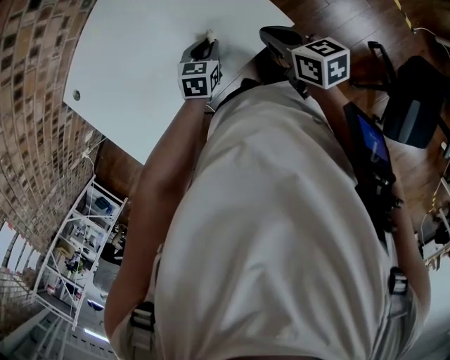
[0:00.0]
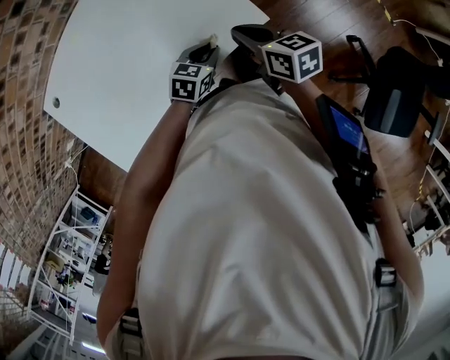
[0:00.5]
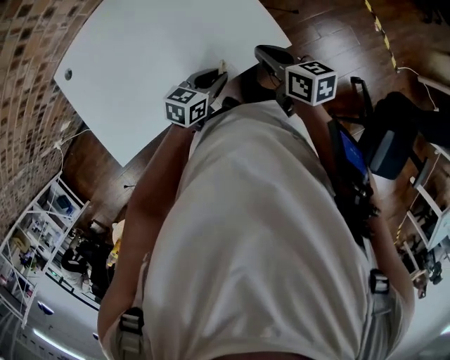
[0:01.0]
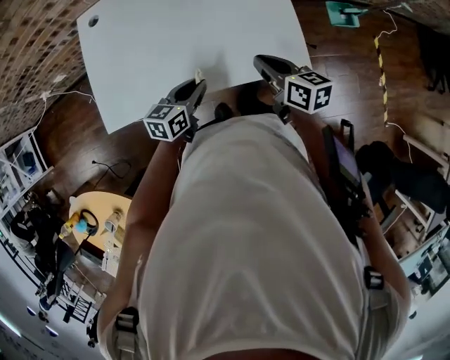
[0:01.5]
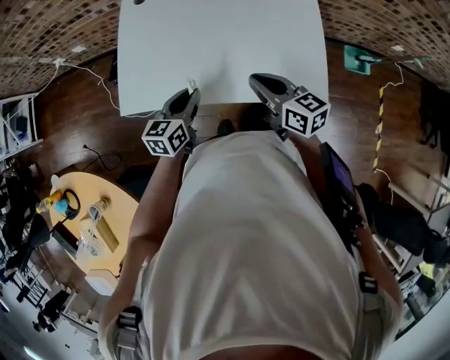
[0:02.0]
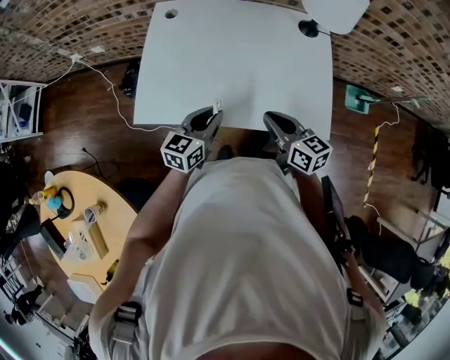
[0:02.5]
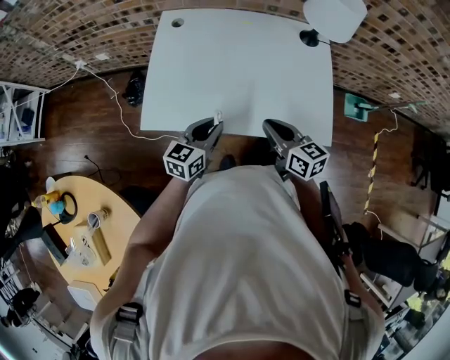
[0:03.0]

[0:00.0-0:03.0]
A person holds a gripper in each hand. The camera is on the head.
0:00.0 to 0:01.5: The right gripper changes place by about 10 cm, and swivels about 20 degrees; the left gripper ends up some 20 cm from where it was, and swivels some 40 degrees.
0:01.5 to 0:03.0: The right gripper moves to the left, roughly 15 cm, while the left gripper heads to the left and upward, covering approximately 15 cm.

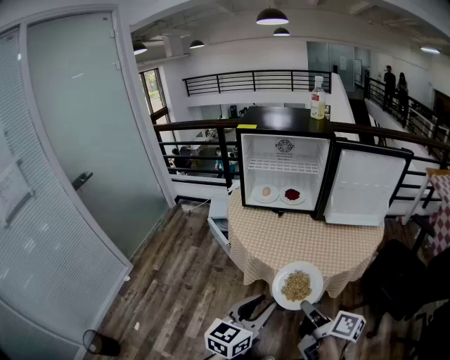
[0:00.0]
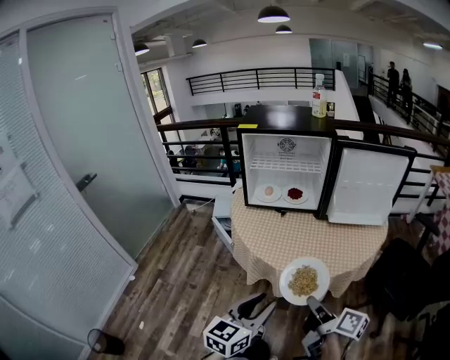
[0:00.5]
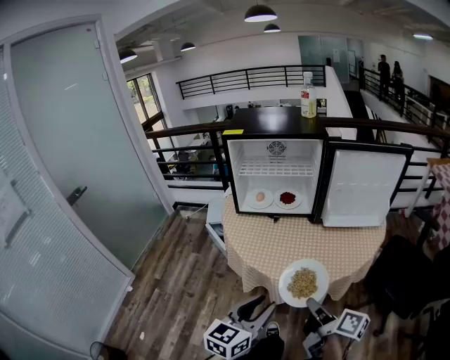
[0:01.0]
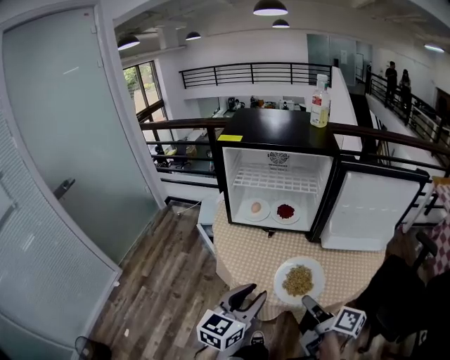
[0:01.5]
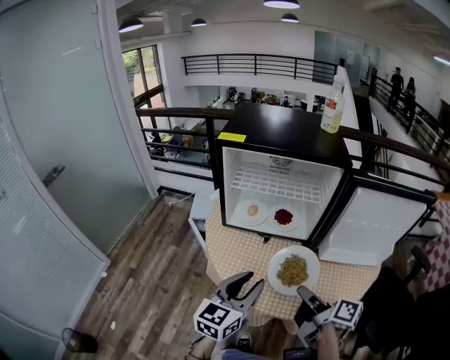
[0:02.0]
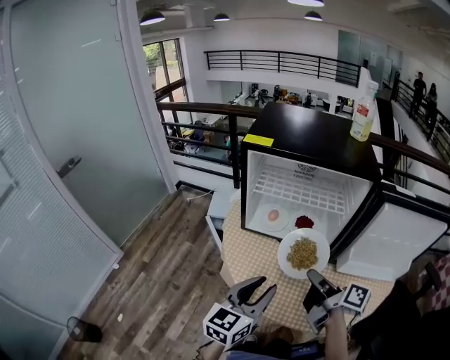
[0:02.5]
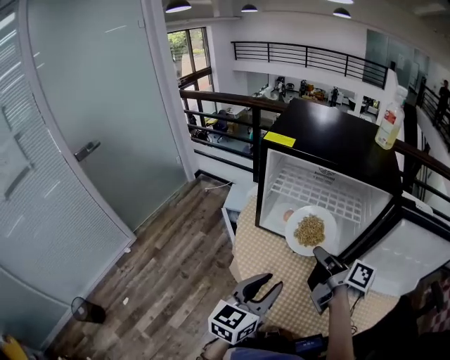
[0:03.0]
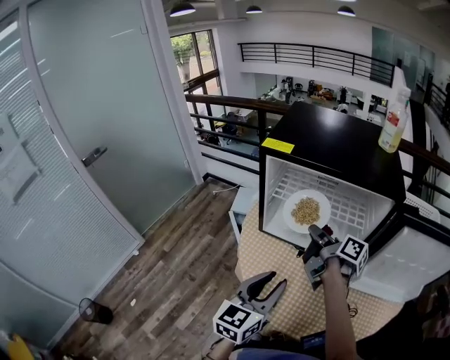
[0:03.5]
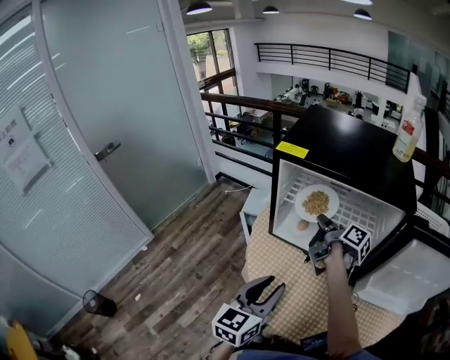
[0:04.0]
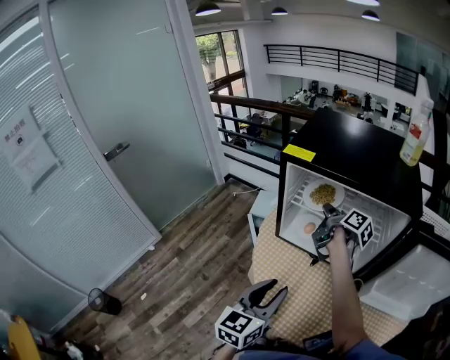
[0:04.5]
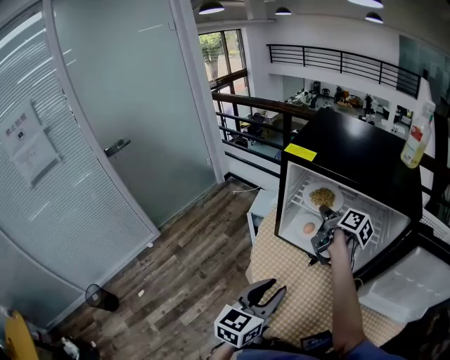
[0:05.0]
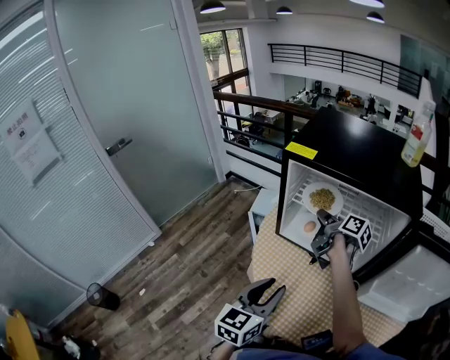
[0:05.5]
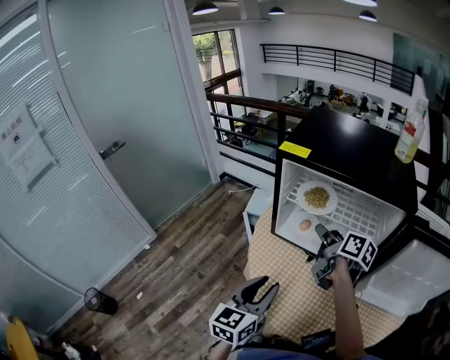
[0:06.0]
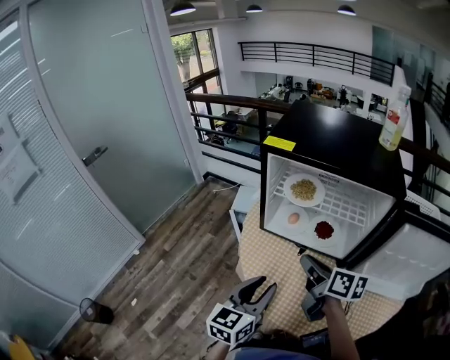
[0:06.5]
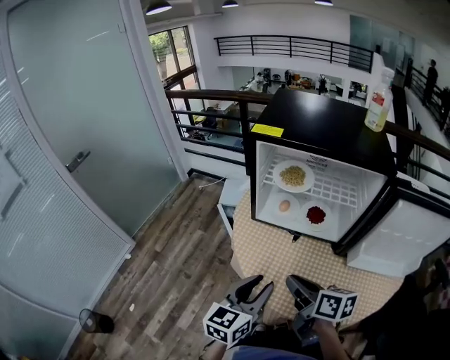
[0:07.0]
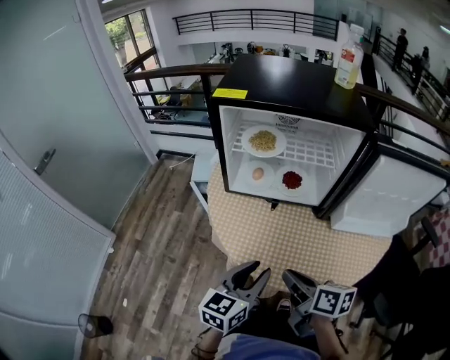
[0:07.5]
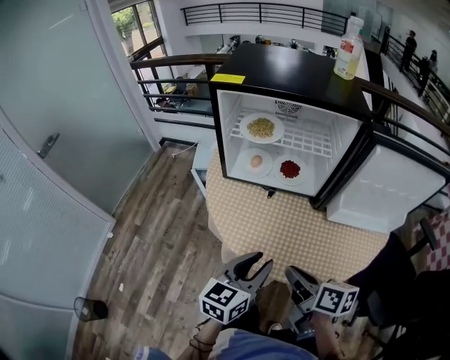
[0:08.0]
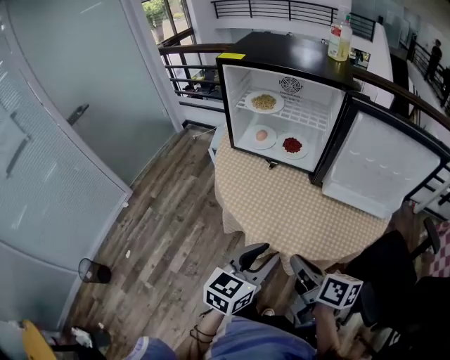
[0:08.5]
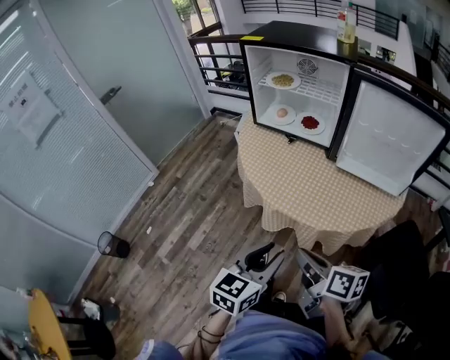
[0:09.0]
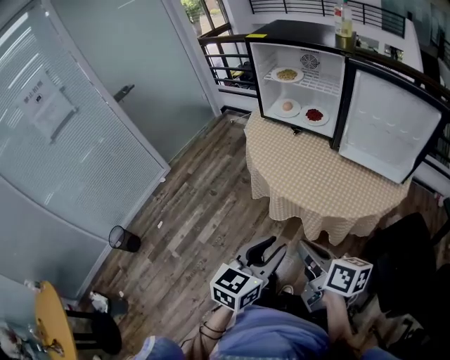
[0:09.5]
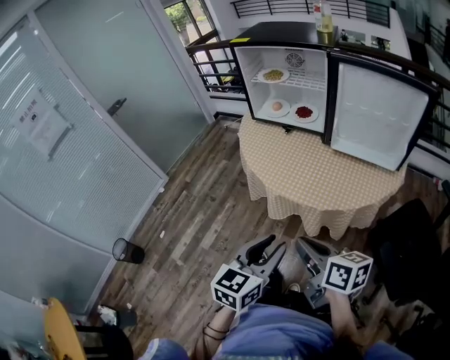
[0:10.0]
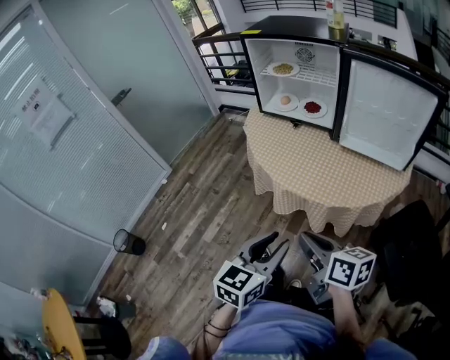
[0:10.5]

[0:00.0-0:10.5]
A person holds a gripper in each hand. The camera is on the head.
0:00.0 to 0:02.0: Both grippers move forward, about 25 cm.
0:02.0 to 0:04.0: The left gripper moves forward, roughly 5 cm. The right gripper goes about 35 cm forward.
0:04.0 to 0:06.5: The right gripper goes approximately 15 cm backward, and changes its angle by some 30 degrees.
0:06.5 to 0:08.5: The right gripper shifts approximately 30 cm backward. Meanwhile the left gripper shifts roughly 25 cm backward and to the right.
0:08.5 to 0:10.5: The grippers both shift backward by approximately 20 cm.

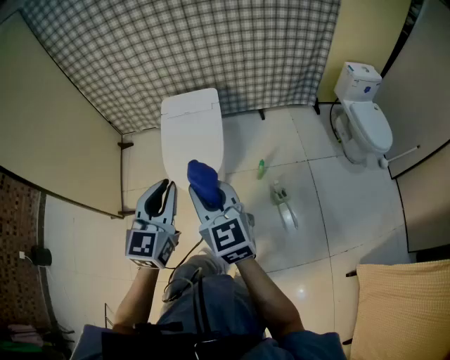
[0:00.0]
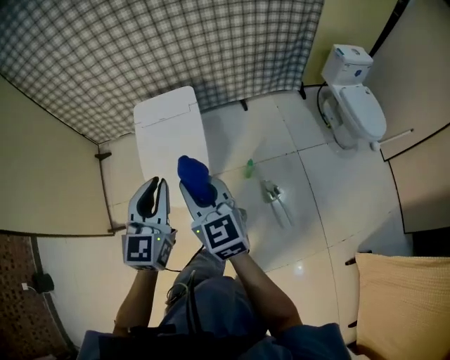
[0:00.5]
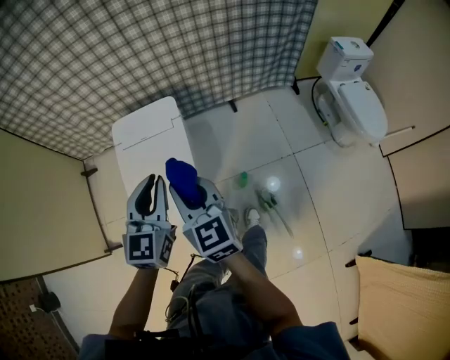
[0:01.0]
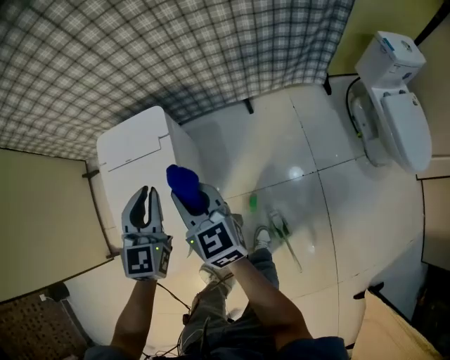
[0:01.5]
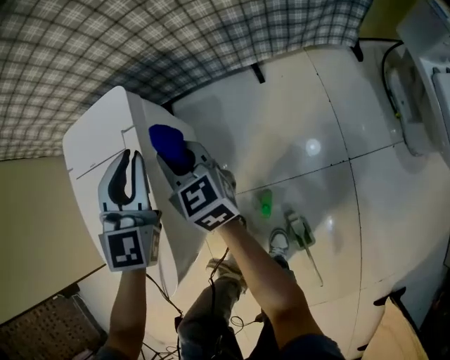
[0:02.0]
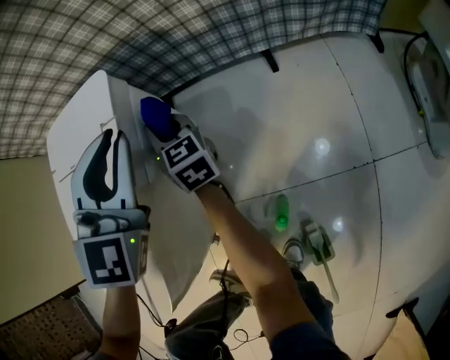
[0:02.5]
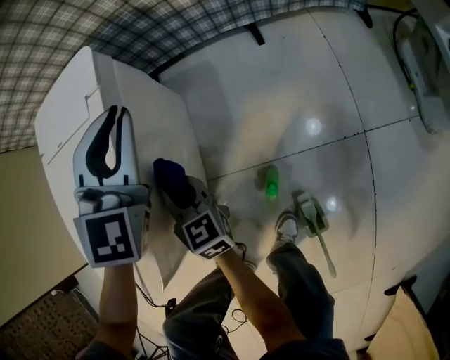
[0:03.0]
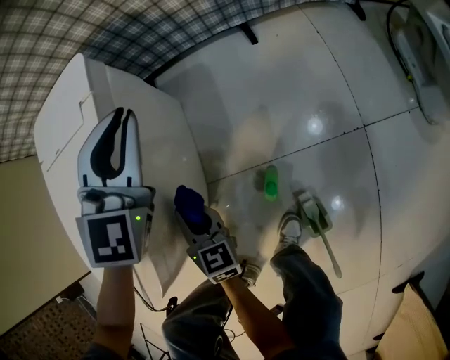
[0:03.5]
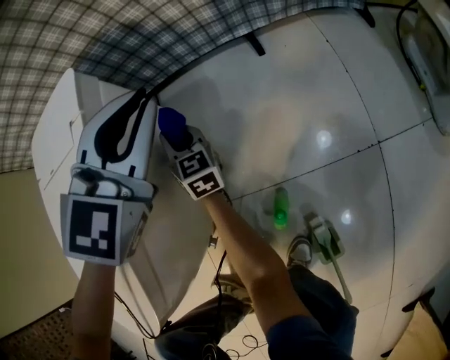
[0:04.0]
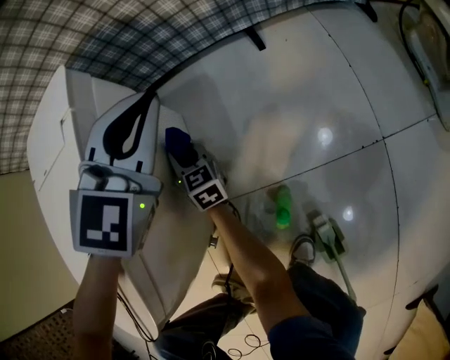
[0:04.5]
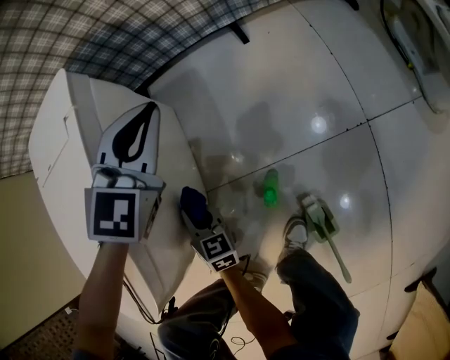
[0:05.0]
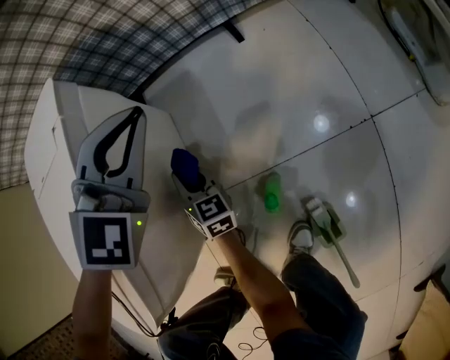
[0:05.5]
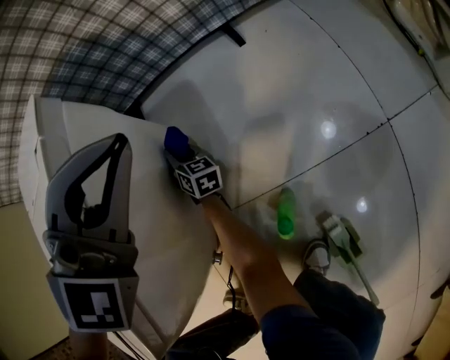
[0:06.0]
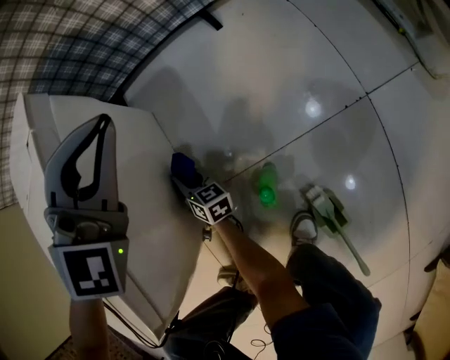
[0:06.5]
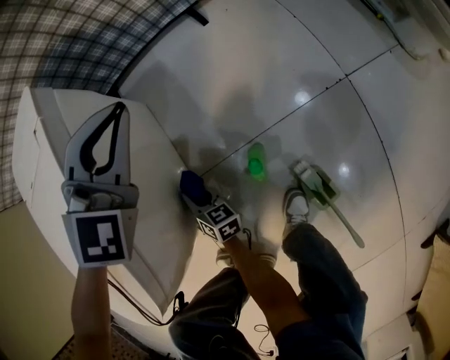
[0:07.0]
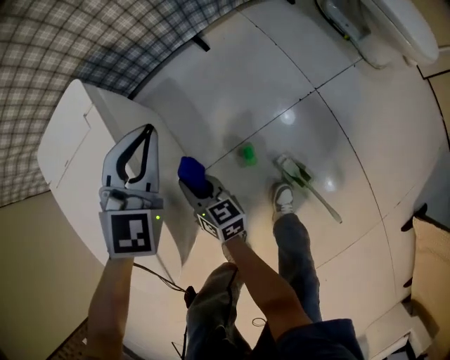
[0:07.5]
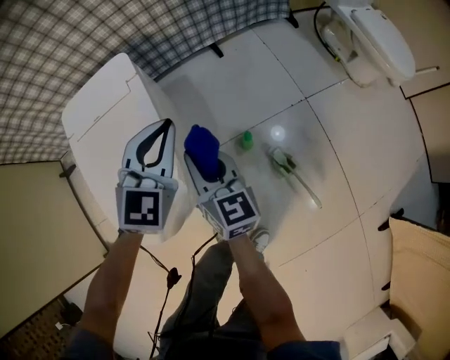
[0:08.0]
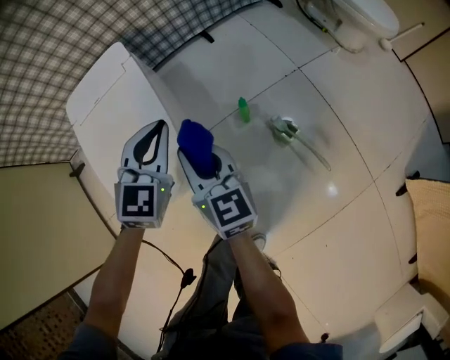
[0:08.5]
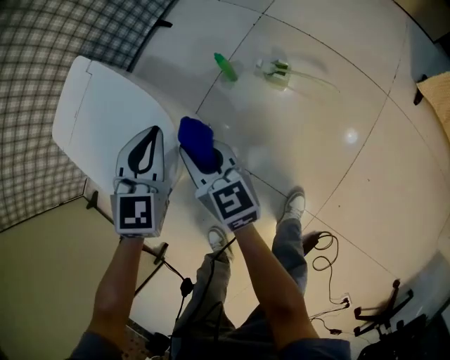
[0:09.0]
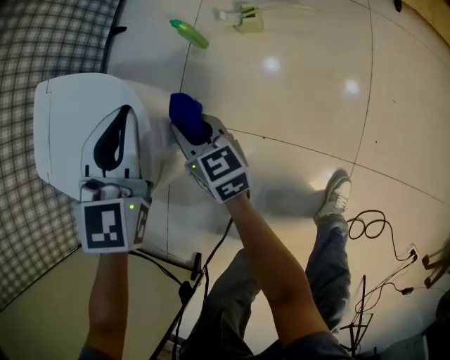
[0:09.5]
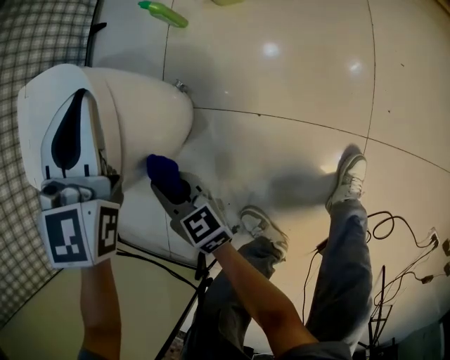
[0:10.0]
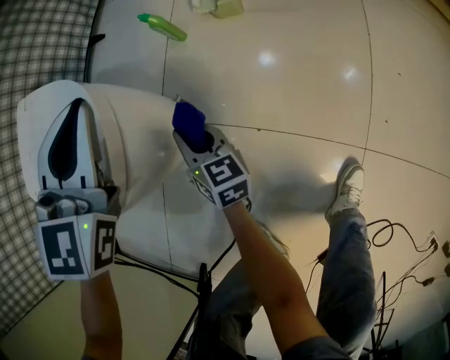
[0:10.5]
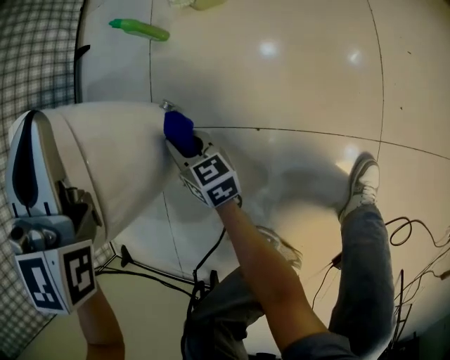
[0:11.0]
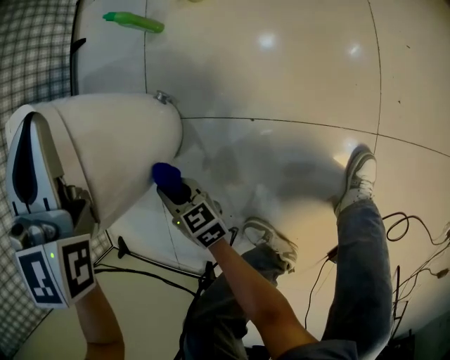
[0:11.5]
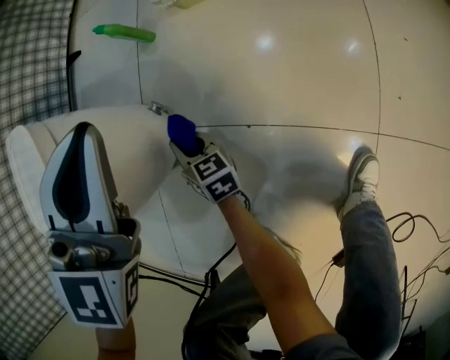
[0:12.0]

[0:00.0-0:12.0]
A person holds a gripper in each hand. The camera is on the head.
0:00.0 to 0:02.0: Both grippers are carried forward, roughly 60 cm. Both grippers travel together downward, about 40 cm. The left gripper changes its angle by about 20 degrees.
0:02.0 to 0:04.0: The right gripper goes forward and backward, roughly 30 cm each way, reversing 2 times. The left gripper shifts about 15 cm downward and to the right, and rotates some 20 degrees.
0:04.0 to 0:06.0: The right gripper shifts roughly 15 cm downward, moves roughly 25 cm backward and comes back, and swivels some 20 degrees. The left gripper goes roughly 5 cm backward, and turns by about 30 degrees.
0:06.0 to 0:08.0: The left gripper is displaced upward and backward by about 30 cm, and changes its angle by some 30 degrees. Meanwhile the right gripper heads upward and backward, covering about 60 cm, and turns by roughly 30 degrees.
0:08.0 to 0:10.0: The right gripper changes place by about 50 cm, and turns by roughly 40 degrees, while the left gripper ends up about 35 cm from where it was, and turns by roughly 40 degrees.
0:10.0 to 0:12.0: The right gripper shifts approximately 25 cm downward, forward and to the right. Meanwhile the left gripper shifts approximately 15 cm to the right and downward.

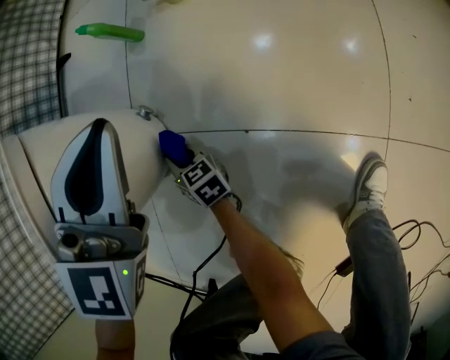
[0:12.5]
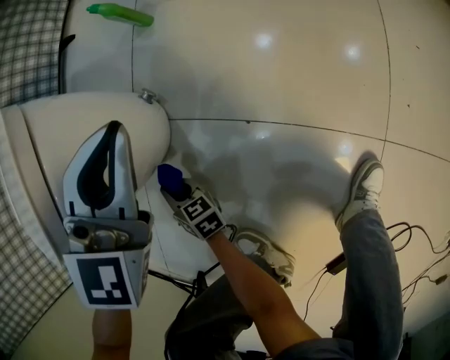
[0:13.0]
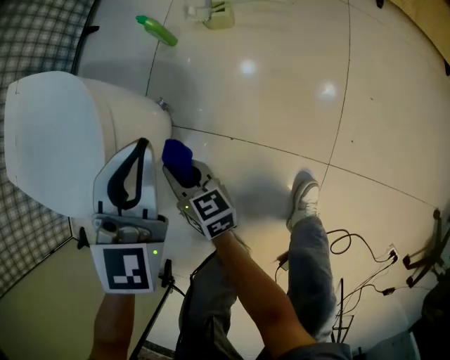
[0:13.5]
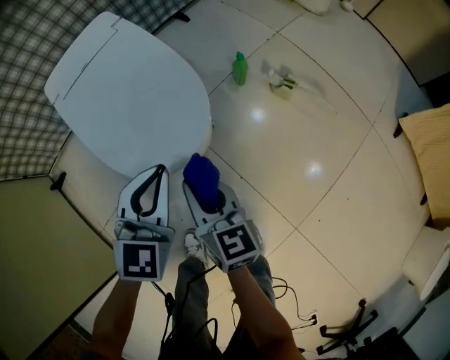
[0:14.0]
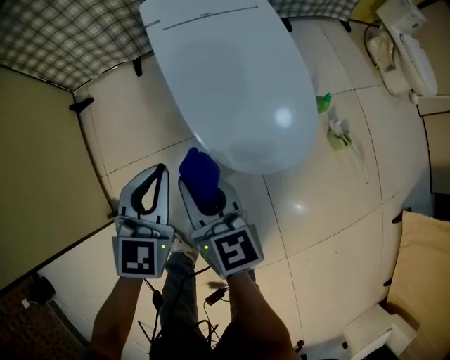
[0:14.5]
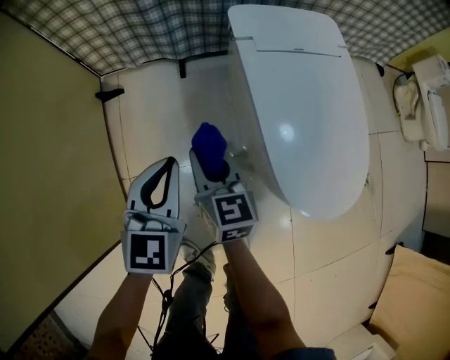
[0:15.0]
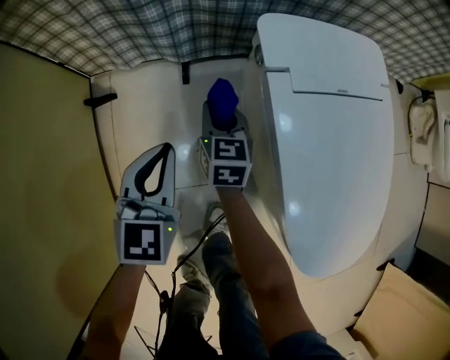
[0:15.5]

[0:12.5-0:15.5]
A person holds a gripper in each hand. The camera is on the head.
0:12.5 to 0:14.0: The left gripper goes some 30 cm upward and to the left, and turns by some 40 degrees. The right gripper heads upward, covering approximately 50 cm, and turns by roughly 20 degrees.
0:14.0 to 0:15.5: The two grippers travel together, some 60 cm. The left gripper swivels approximately 40 degrees; the right gripper changes its angle by roughly 30 degrees.
